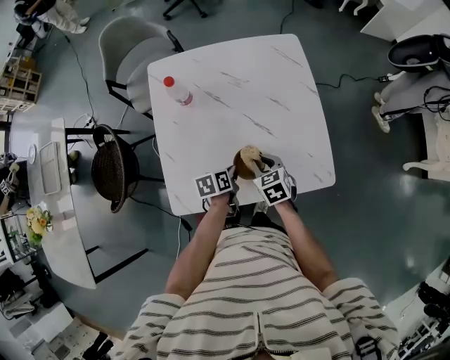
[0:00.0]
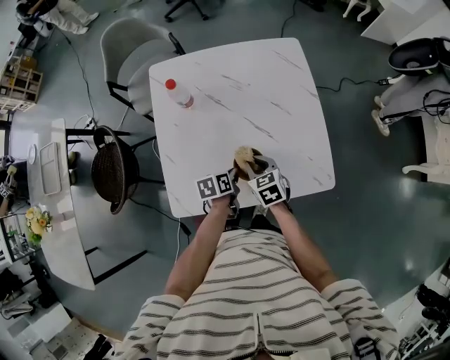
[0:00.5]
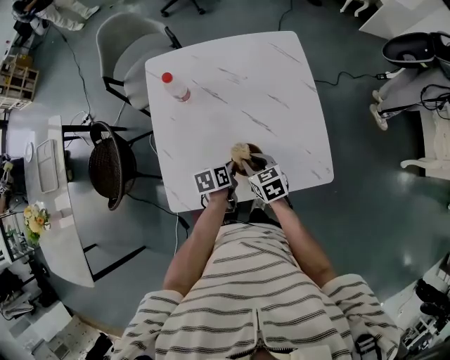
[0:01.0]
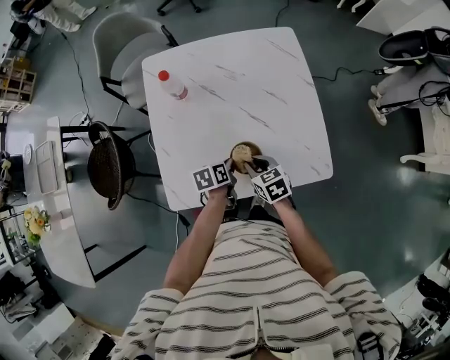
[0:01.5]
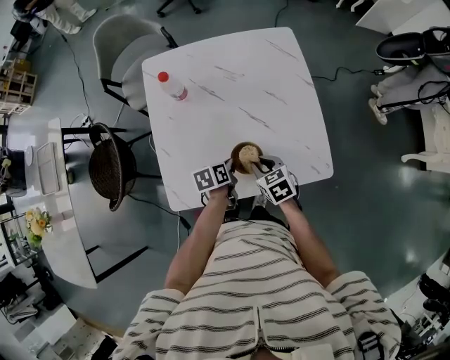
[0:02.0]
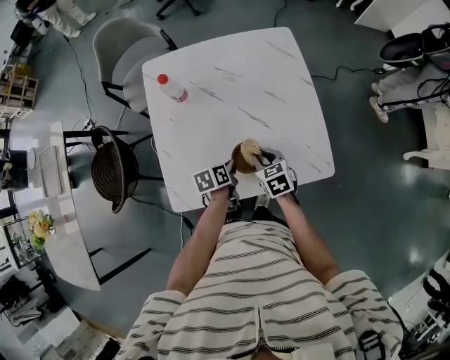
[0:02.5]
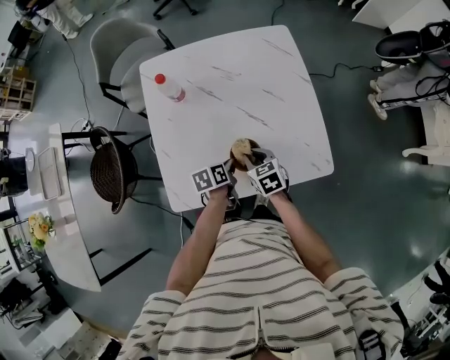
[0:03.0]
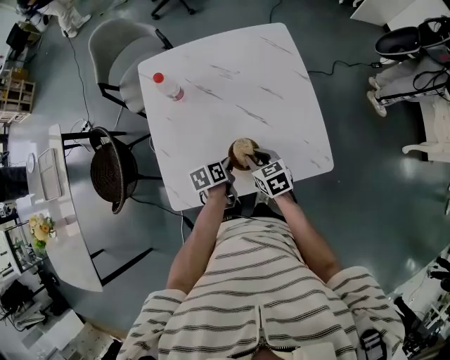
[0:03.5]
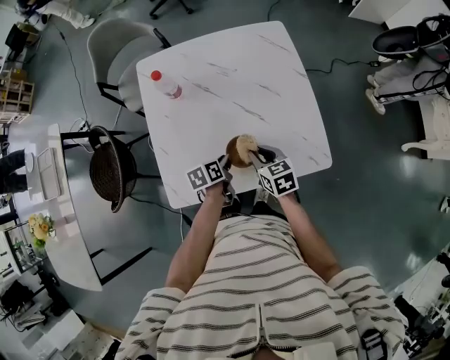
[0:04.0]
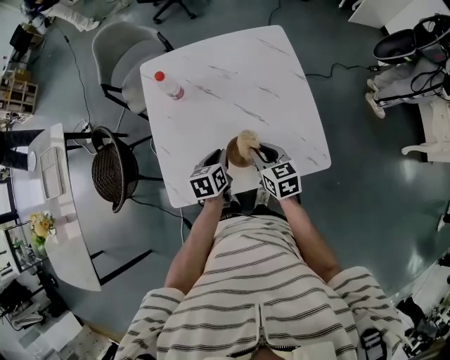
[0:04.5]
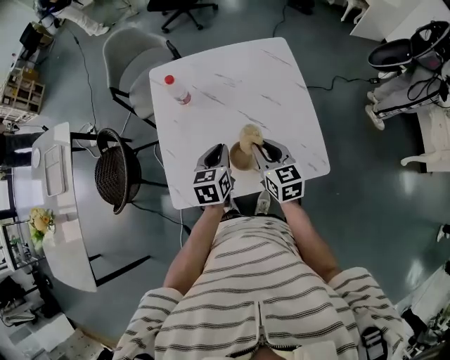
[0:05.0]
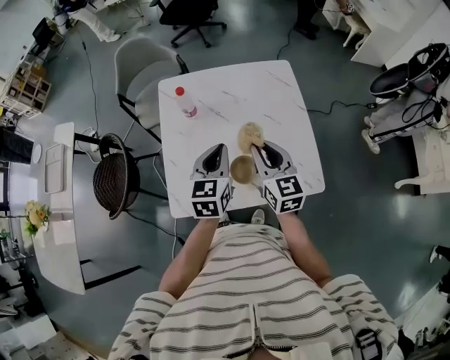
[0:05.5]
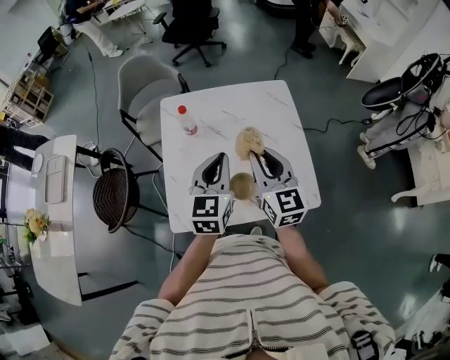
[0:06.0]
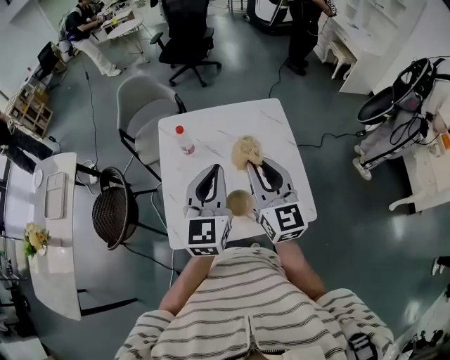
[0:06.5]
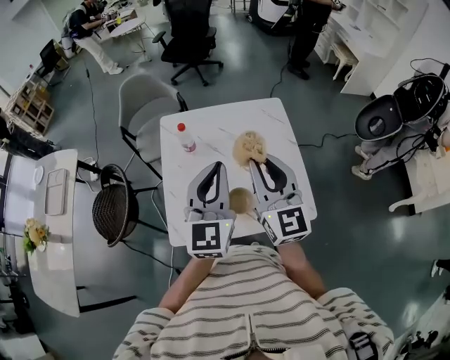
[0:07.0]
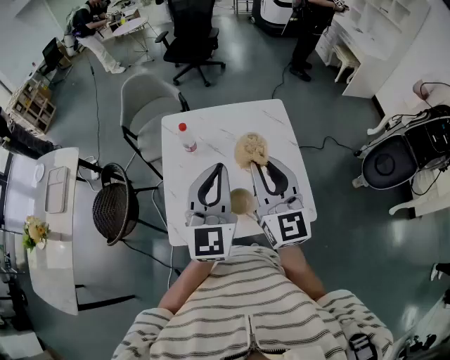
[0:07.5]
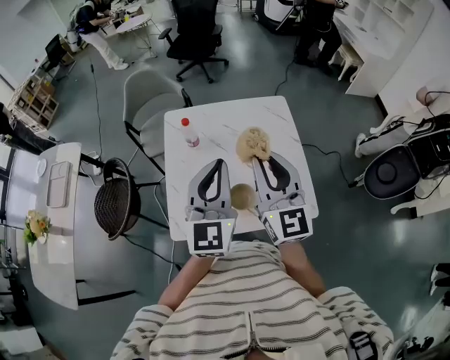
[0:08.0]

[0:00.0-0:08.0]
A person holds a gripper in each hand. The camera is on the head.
0:00.0 to 0:04.0: There are only small adjustments of the grippers.
0:04.0 to 0:06.0: The grippers both shift upward by some 30 cm. The right gripper tilts its fingers about 40 degrees upward. The left gripper points its fingers about 30 degrees further upward.
0:06.0 to 0:08.0: The grippers both shift upward by some 10 cm.

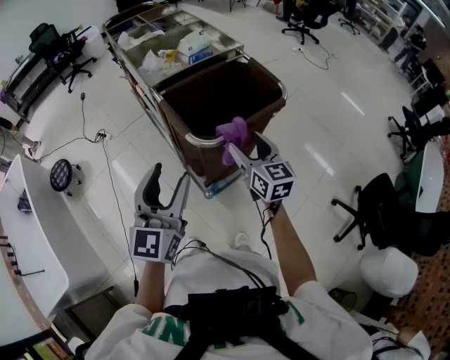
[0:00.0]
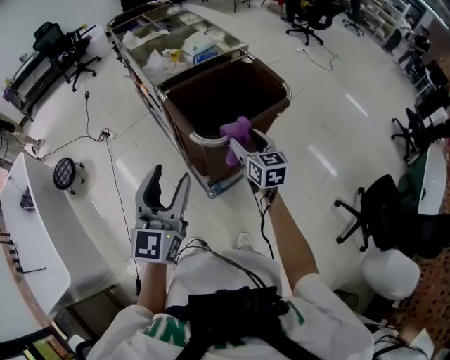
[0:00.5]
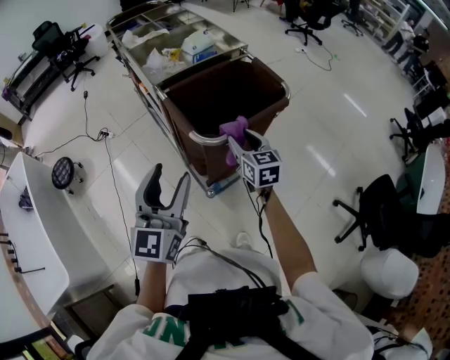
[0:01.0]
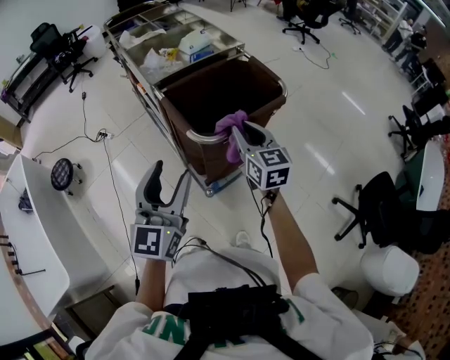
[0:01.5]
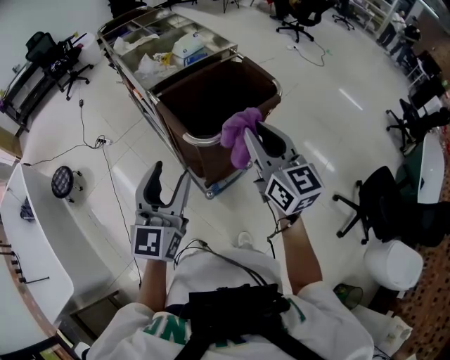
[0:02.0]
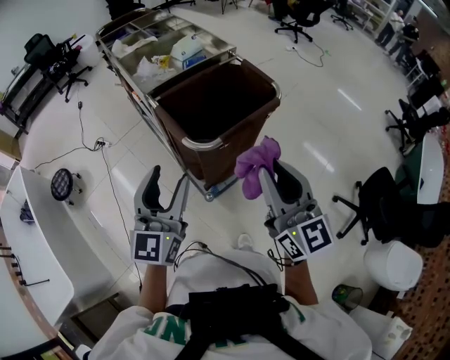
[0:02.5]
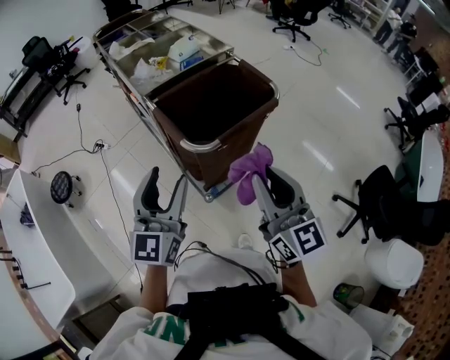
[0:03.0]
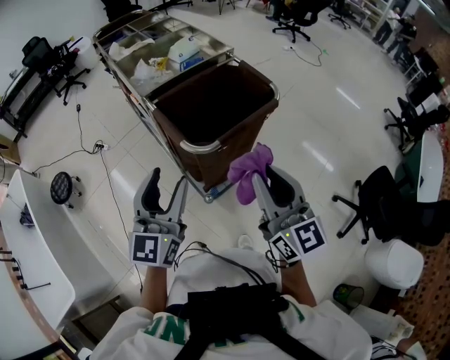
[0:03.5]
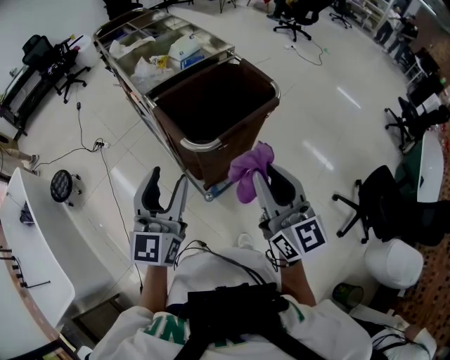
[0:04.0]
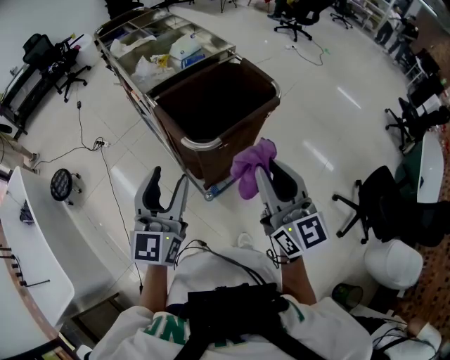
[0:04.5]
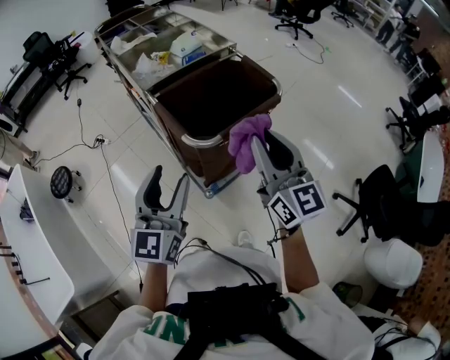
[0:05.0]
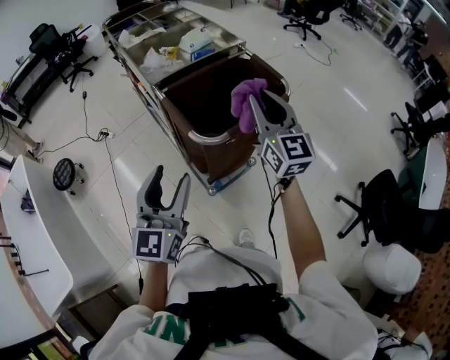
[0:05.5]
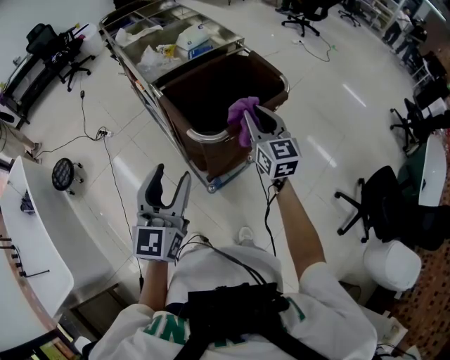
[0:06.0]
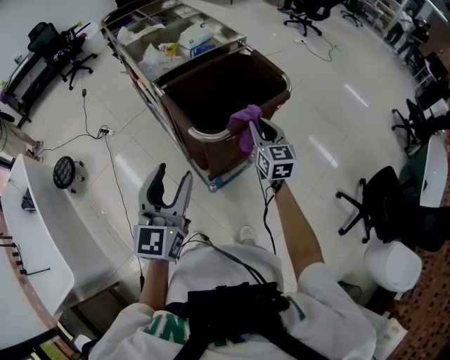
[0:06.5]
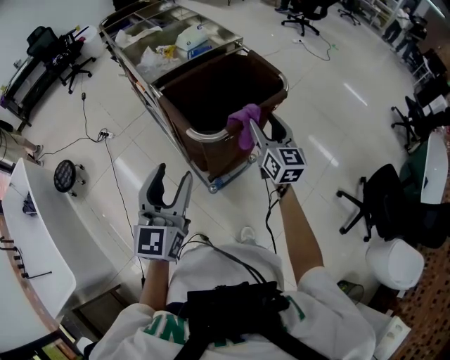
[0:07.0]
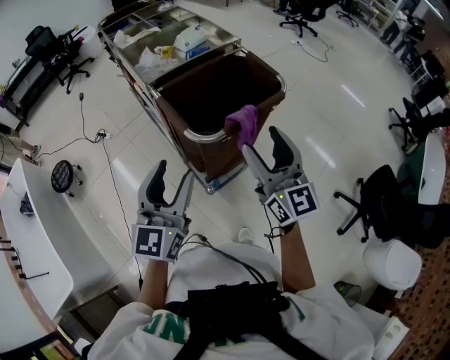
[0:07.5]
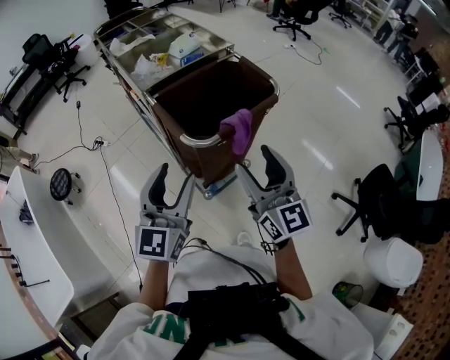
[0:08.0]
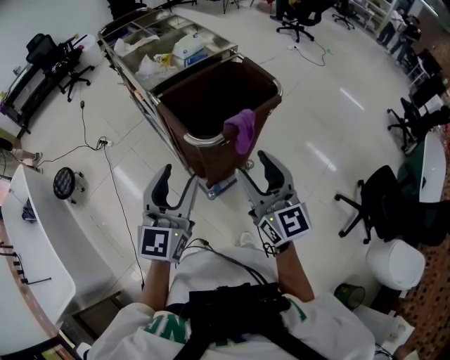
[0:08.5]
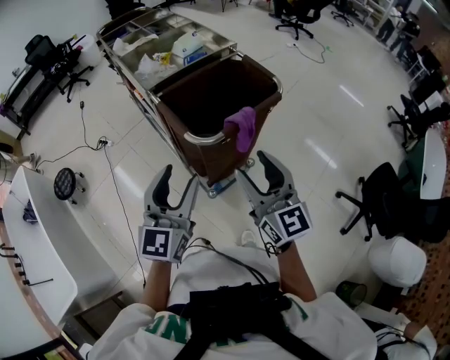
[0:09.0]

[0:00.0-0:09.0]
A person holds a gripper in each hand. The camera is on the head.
0:00.0 to 0:02.0: The right gripper is displaced upward by about 15 cm, and closes up.
0:02.0 to 0:04.5: The right gripper moves backward, some 10 cm.
0:04.5 to 0:07.0: The right gripper is displaced forward and downward by about 20 cm, and opens up.
0:07.0 to 0:09.0: The right gripper moves backward and upward, roughly 20 cm.

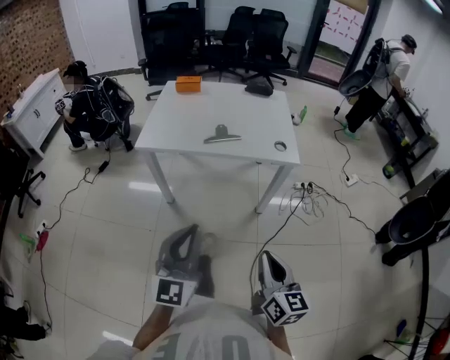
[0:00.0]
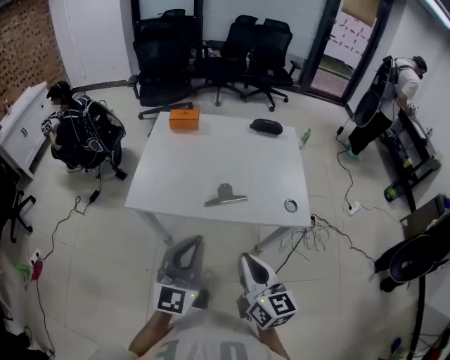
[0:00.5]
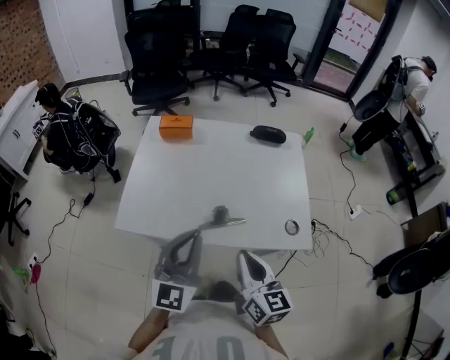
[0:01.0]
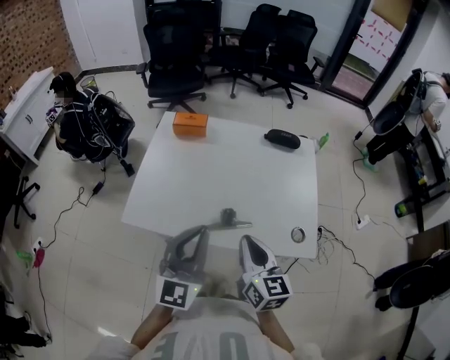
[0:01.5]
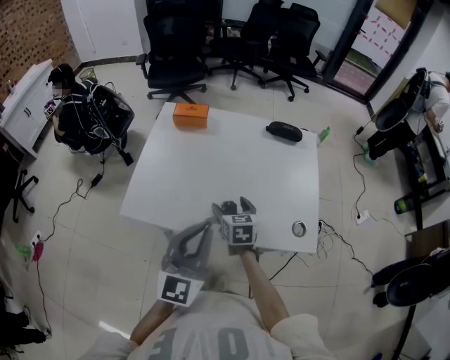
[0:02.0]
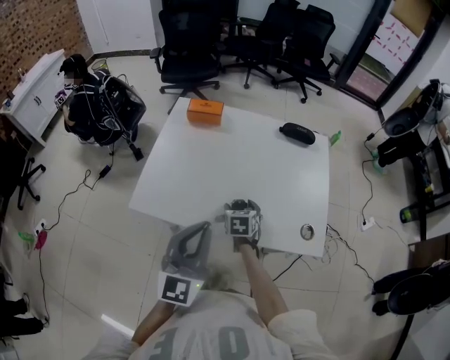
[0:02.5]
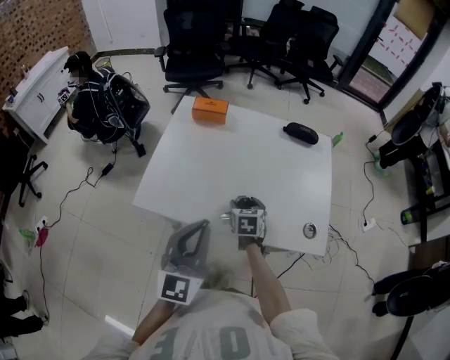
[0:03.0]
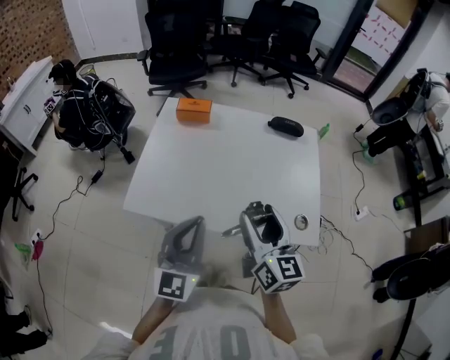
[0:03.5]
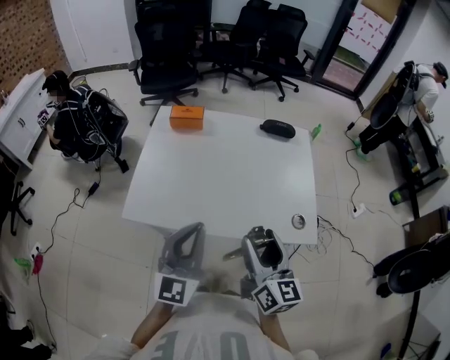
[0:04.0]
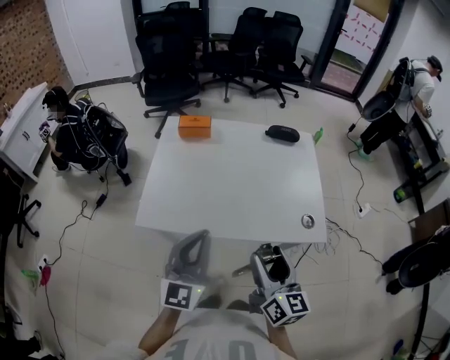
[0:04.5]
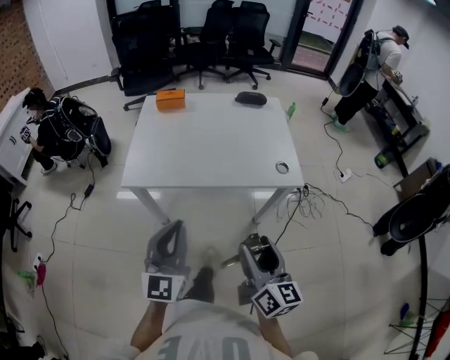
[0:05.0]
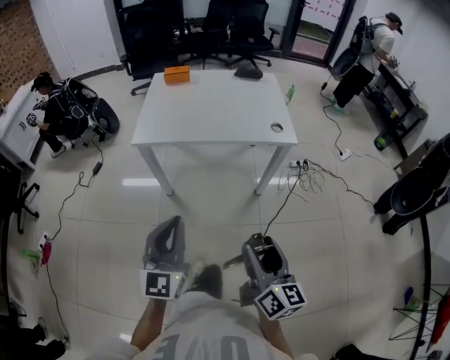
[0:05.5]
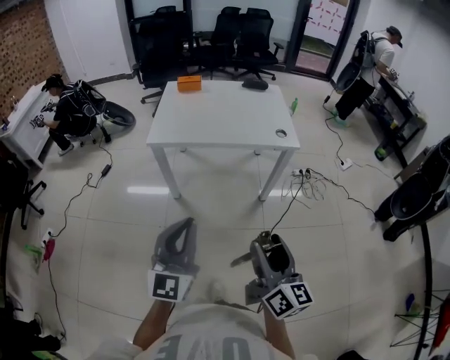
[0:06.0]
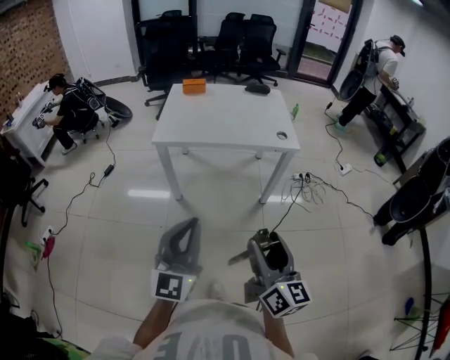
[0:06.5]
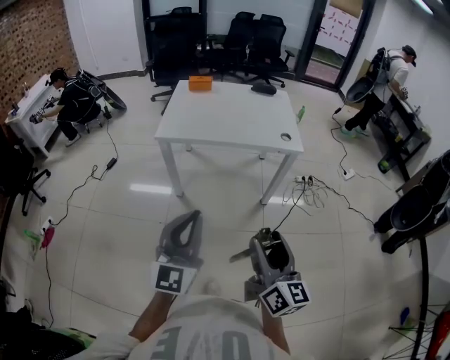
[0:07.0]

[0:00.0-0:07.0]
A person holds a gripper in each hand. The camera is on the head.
0:00.0 to 0:02.0: Both grippers travel together forward, roughly 50 cm. The right gripper rotates some 30 degrees, and opens up.
0:02.0 to 0:03.5: The right gripper goes roughly 20 cm upward and backward, and tips its fingers upward by approximately 30 degrees.
0:03.5 to 0:05.0: Both grippers travel together backward, some 25 cm.
0:05.0 to 0:07.0: The grippers both shift backward by some 25 cm.

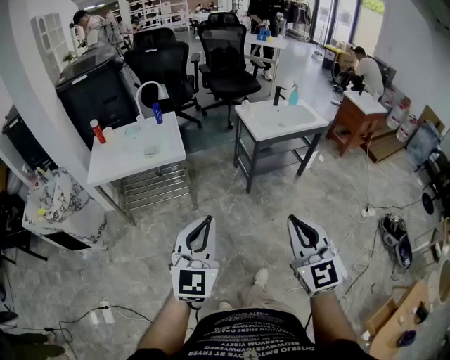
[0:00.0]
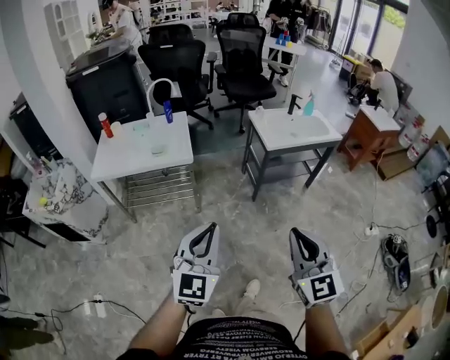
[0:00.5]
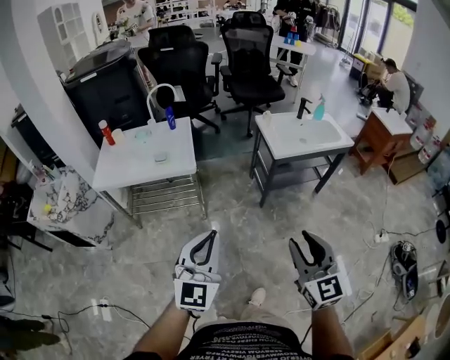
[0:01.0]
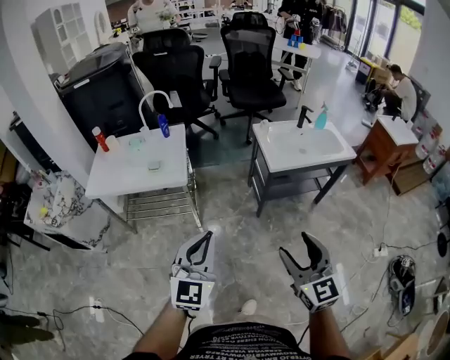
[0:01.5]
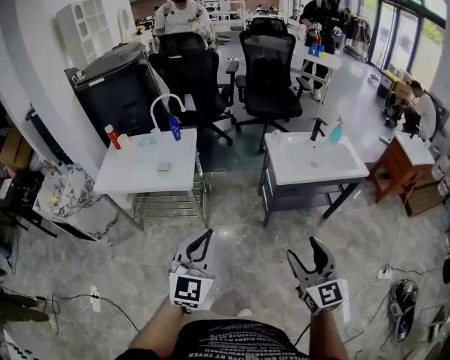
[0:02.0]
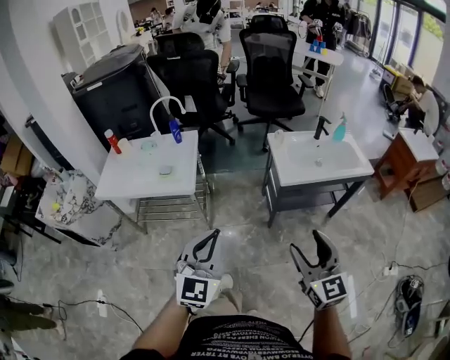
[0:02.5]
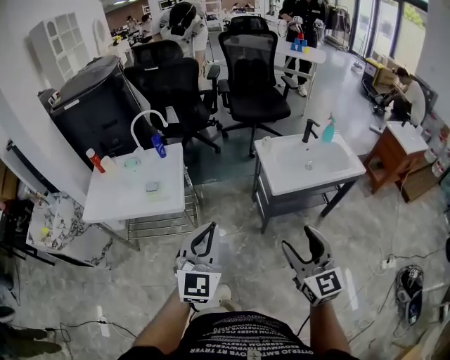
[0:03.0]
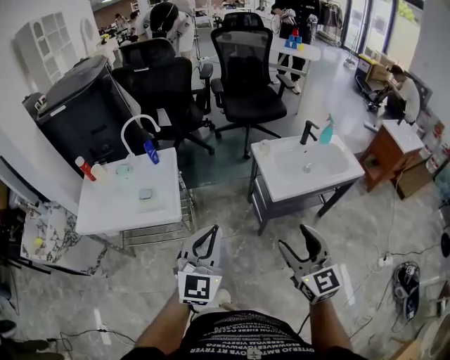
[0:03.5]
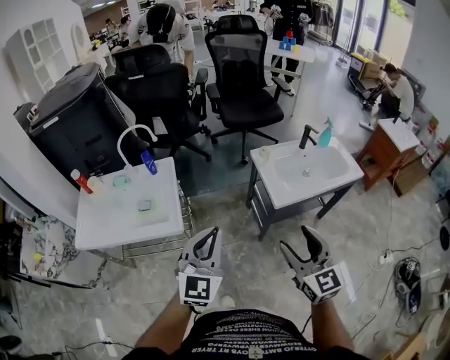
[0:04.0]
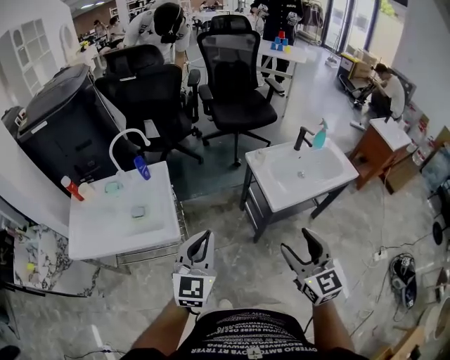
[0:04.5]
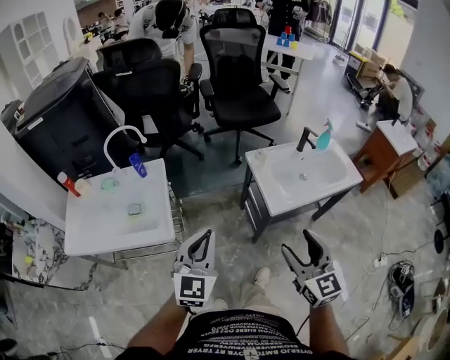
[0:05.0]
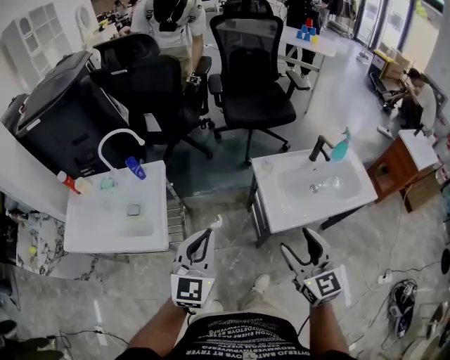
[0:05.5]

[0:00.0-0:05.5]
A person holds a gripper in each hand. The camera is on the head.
0:00.0 to 0:02.0: Both grippers move forward and to the right, approximately 30 cm. The right gripper opens.
0:02.0 to 0:03.5: Both grippers move forward, some 20 cm.
0:03.5 to 0:05.5: Both grippers travel together forward, roughly 20 cm.
